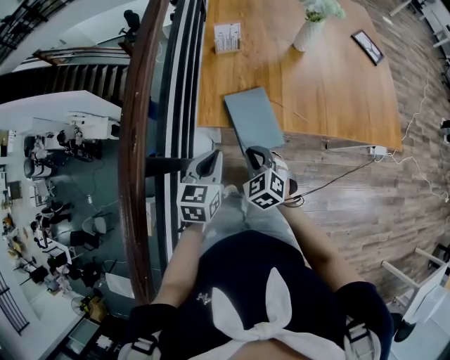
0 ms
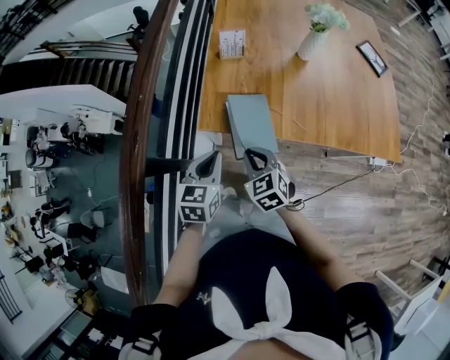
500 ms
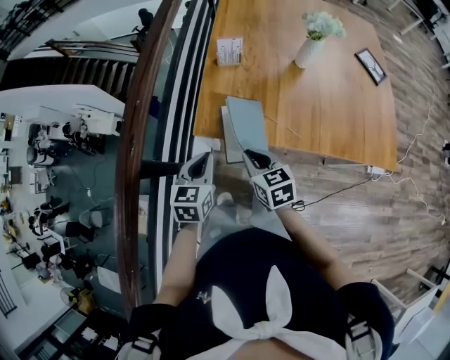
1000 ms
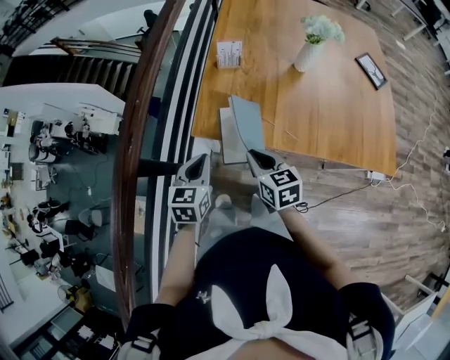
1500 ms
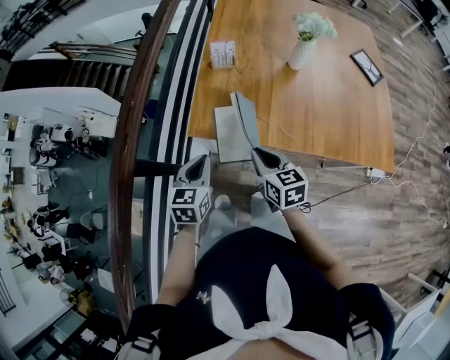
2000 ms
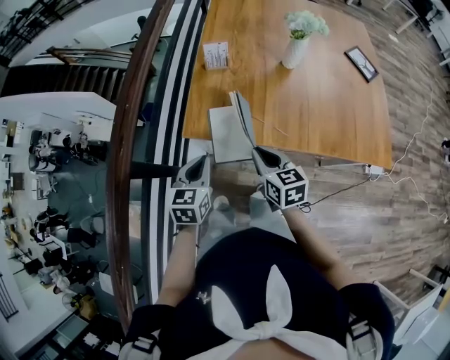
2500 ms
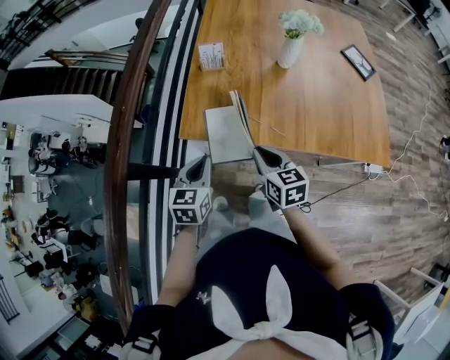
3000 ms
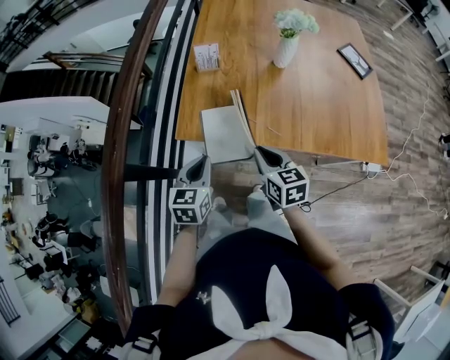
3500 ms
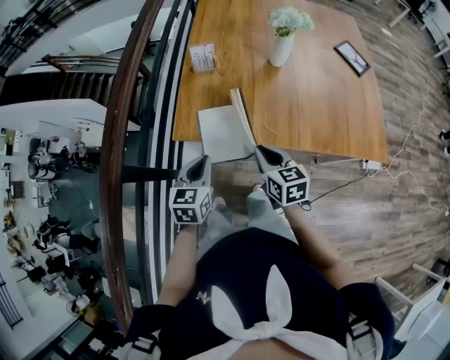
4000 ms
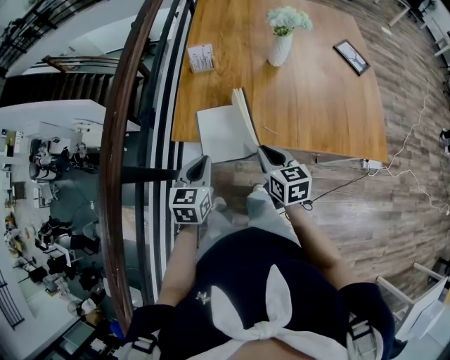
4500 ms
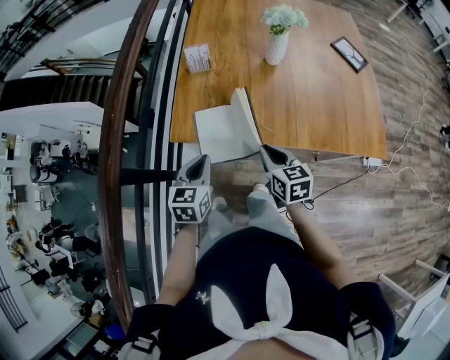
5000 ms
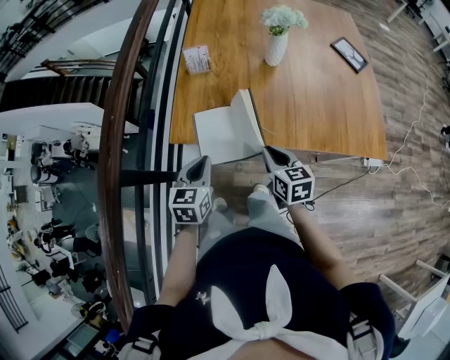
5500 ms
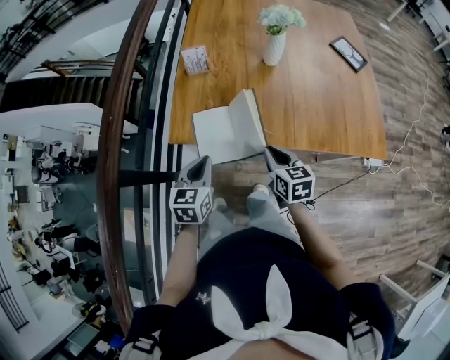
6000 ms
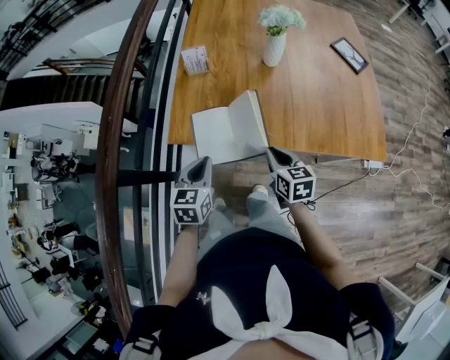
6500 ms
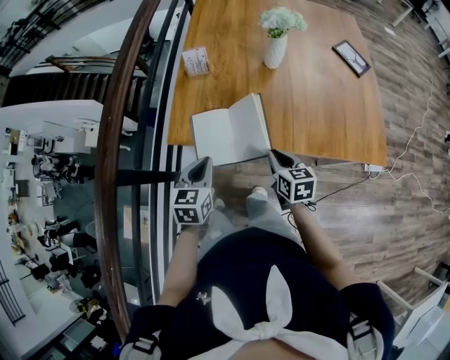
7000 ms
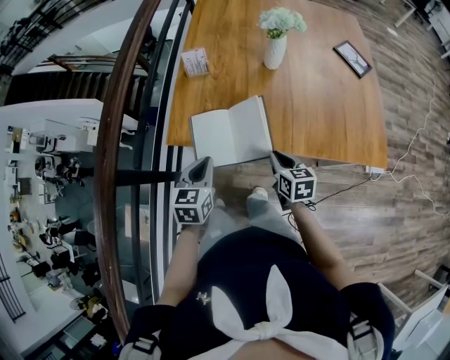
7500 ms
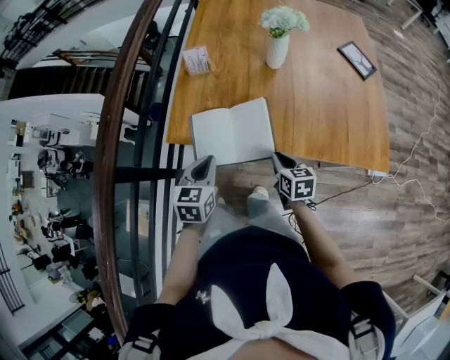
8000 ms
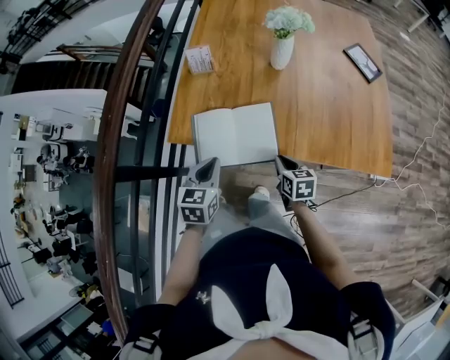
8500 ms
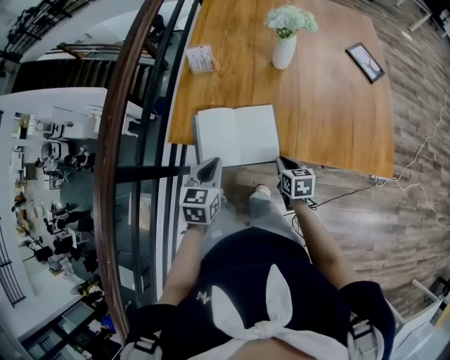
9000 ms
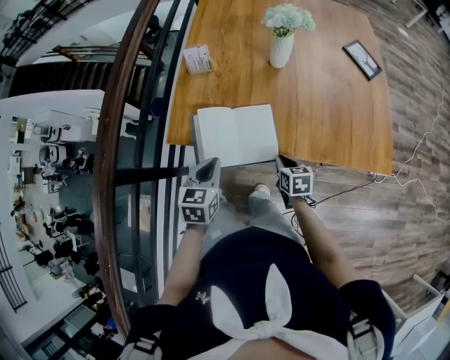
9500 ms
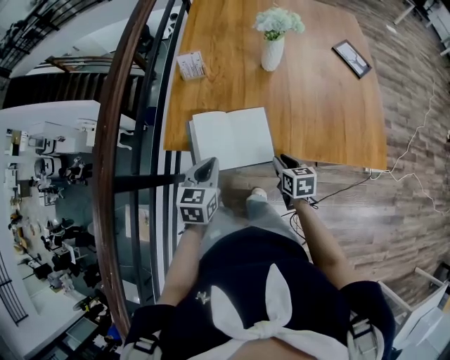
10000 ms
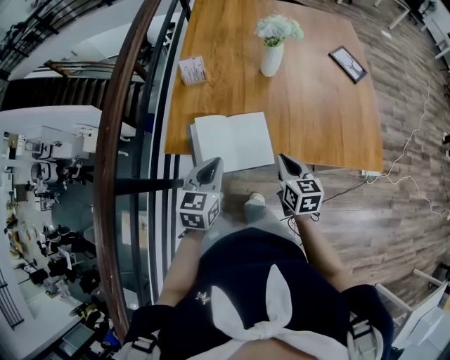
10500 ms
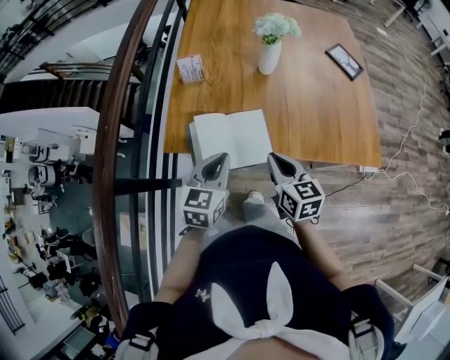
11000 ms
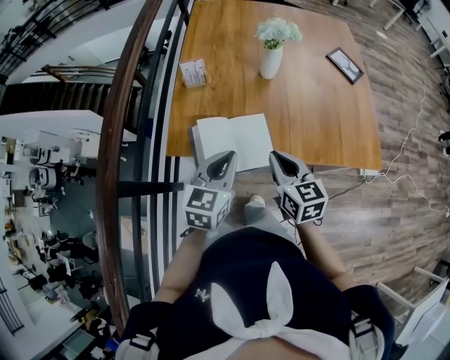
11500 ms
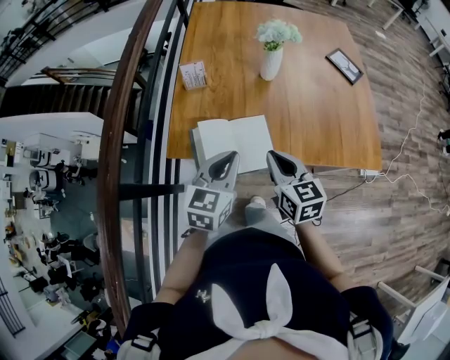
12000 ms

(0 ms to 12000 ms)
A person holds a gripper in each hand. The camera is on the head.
0 ms - 2000 ms: The right gripper goes some 15 cm upward and to the right, and turns by some 40 degrees.
2000 ms - 4000 ms: The grippers both shift to the right by about 5 cm.
4000 ms - 6000 ms: The right gripper travels to the right by about 5 cm.
6000 ms - 8000 ms: The right gripper shifts roughly 10 cm downward and to the right.
10000 ms - 12000 ms: The right gripper shifts approximately 20 cm upward and to the left, swivels about 20 degrees, and closes up. The left gripper goes roughly 10 cm upward.

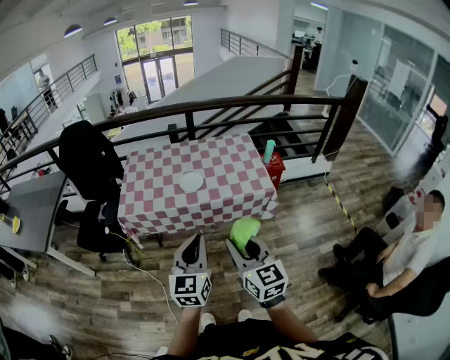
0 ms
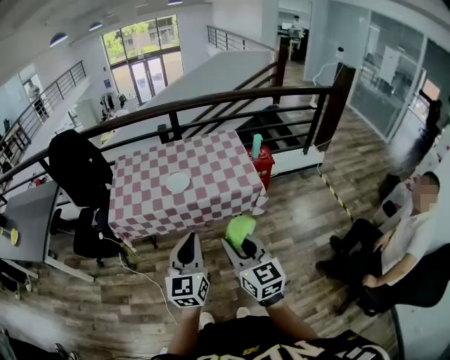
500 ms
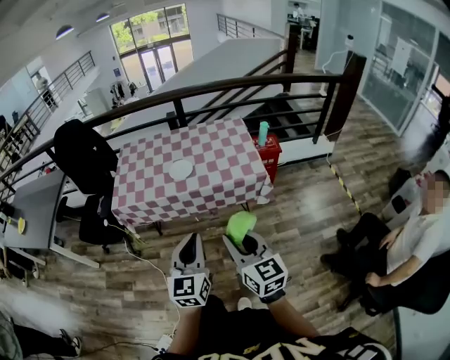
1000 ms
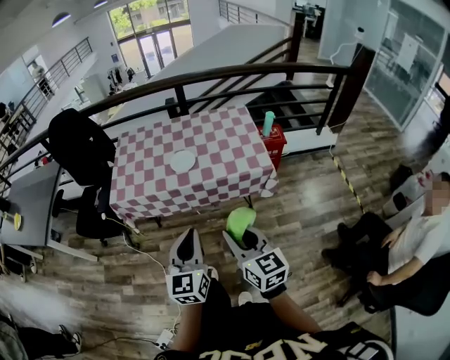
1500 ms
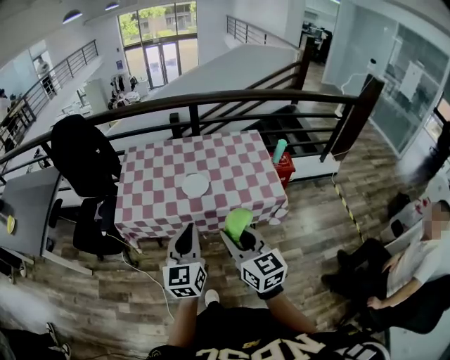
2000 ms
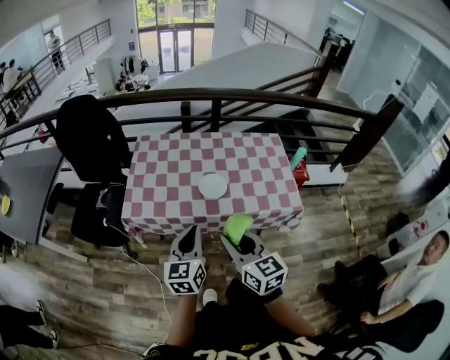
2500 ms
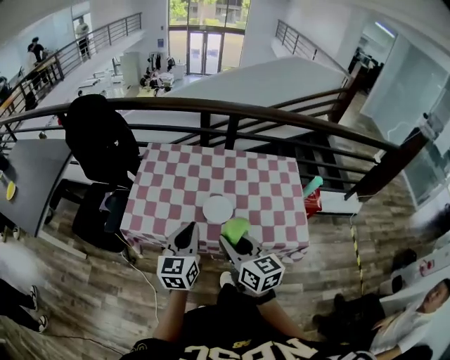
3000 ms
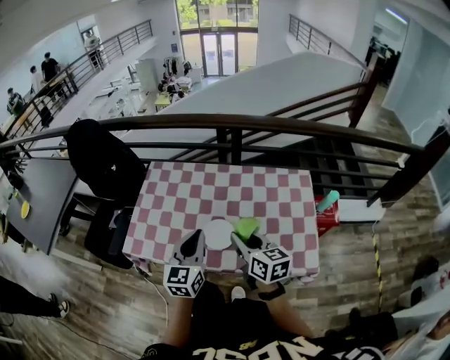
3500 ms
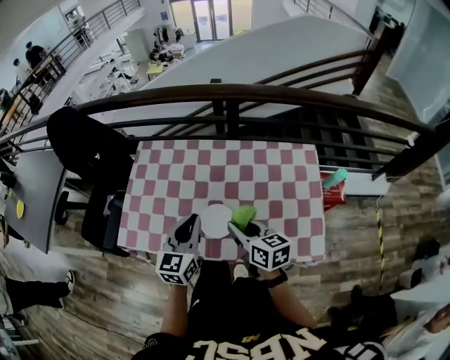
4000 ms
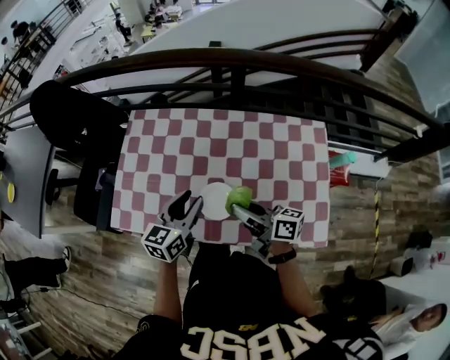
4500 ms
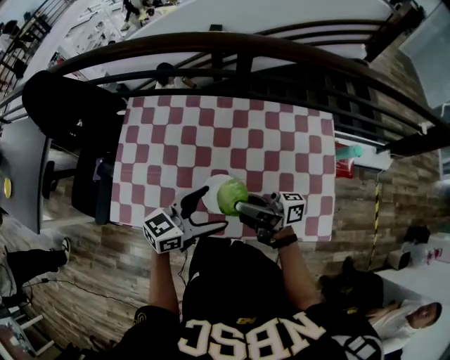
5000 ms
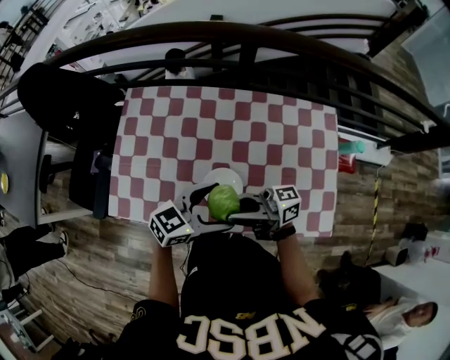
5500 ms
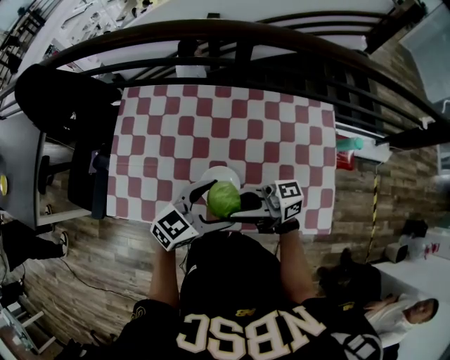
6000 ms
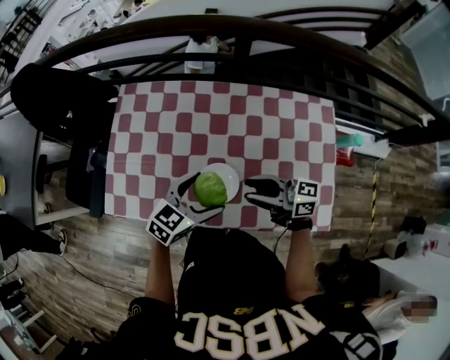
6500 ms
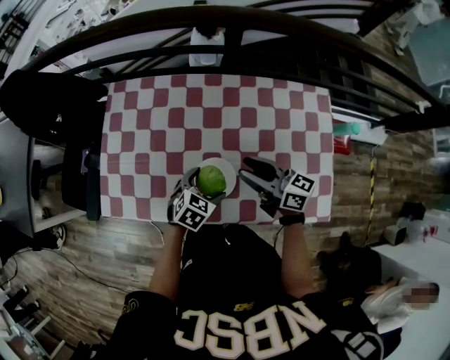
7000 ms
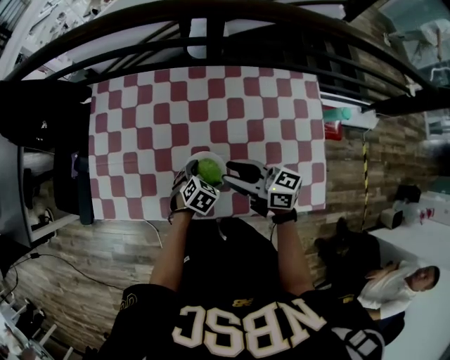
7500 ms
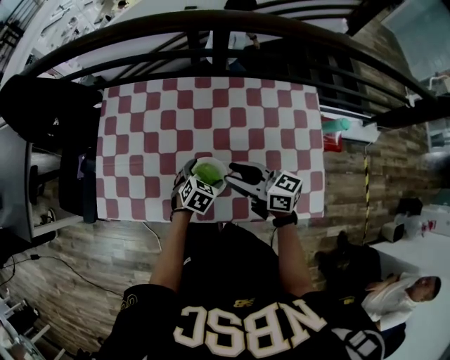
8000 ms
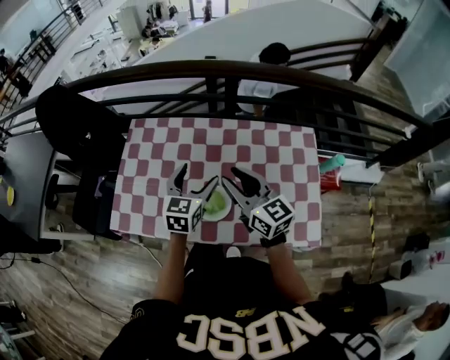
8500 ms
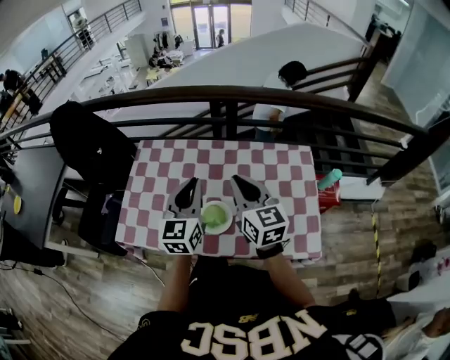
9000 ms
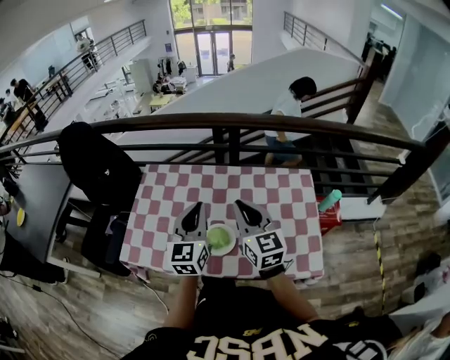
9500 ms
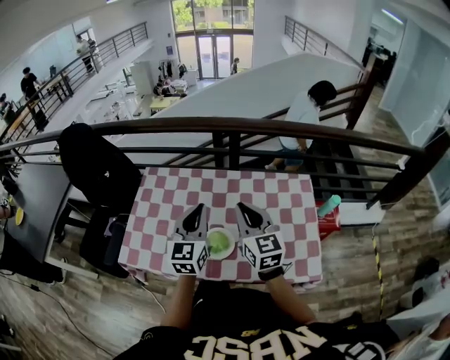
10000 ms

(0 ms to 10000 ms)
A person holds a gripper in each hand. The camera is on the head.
0 ms - 2000 ms: Both grippers move forward, about 15 cm.
2000 ms - 4000 ms: The right gripper travels forward and downward by roughly 40 cm, and changes its angle by approximately 30 degrees. The left gripper goes about 35 cm forward.
4000 ms - 6000 ms: The left gripper goes approximately 5 cm downward, rotates approximately 50 degrees, and opens; the right gripper shifts by some 5 cm, and points its fingers about 40 degrees further upward.
6000 ms - 8000 ms: The right gripper shifts by some 10 cm, and changes its angle by about 40 degrees; the left gripper moves downward, approximately 20 cm, and tips its fingers downward by about 40 degrees.
8000 ms - 10000 ms: The right gripper travels upward by approximately 15 cm, swivels approximately 50 degrees, and closes. Meanwhile the left gripper shifts roughly 35 cm upward, angles its fingers upward, by about 50 degrees, and closes its fingers.

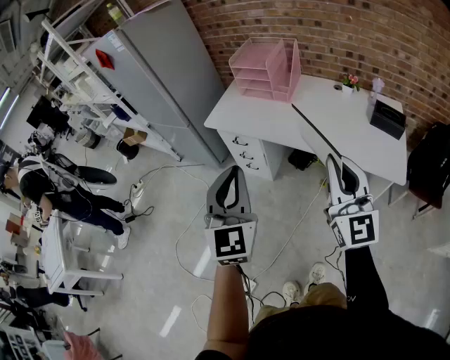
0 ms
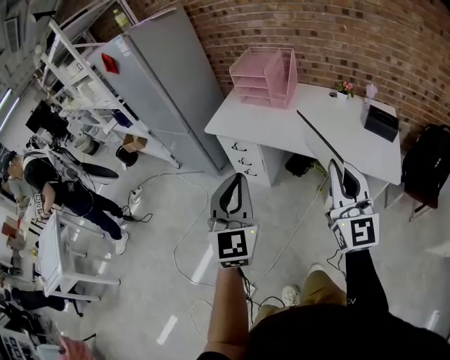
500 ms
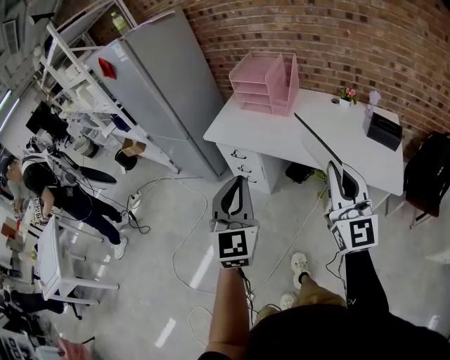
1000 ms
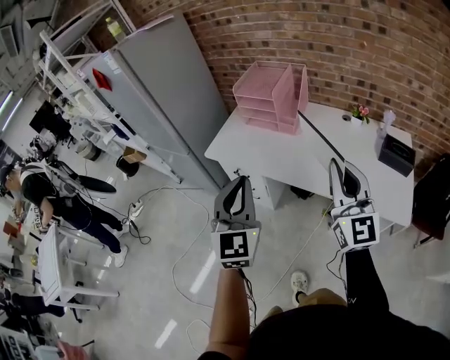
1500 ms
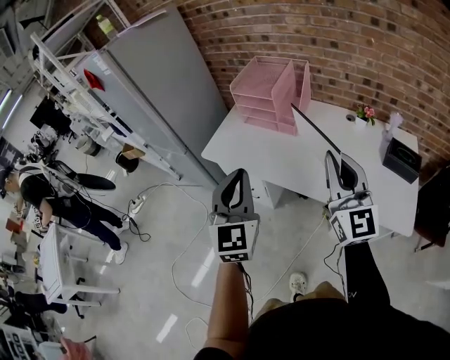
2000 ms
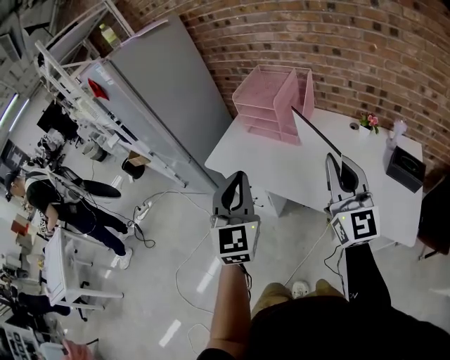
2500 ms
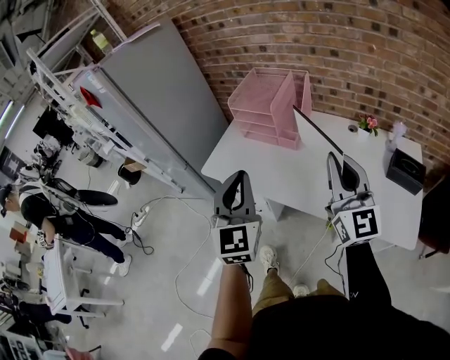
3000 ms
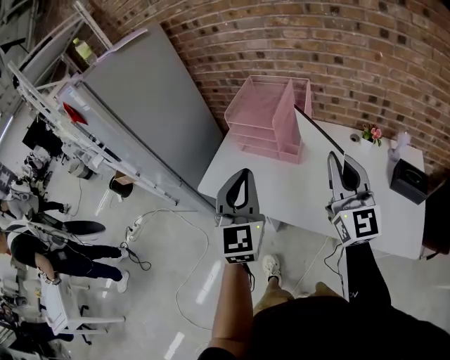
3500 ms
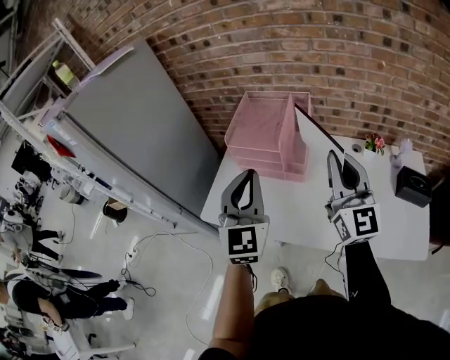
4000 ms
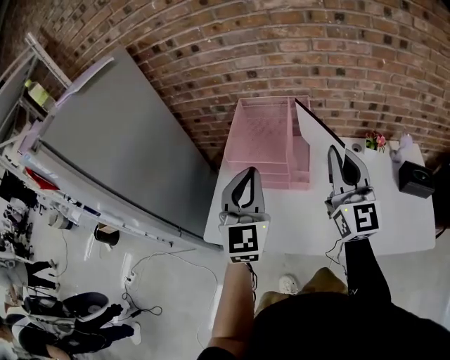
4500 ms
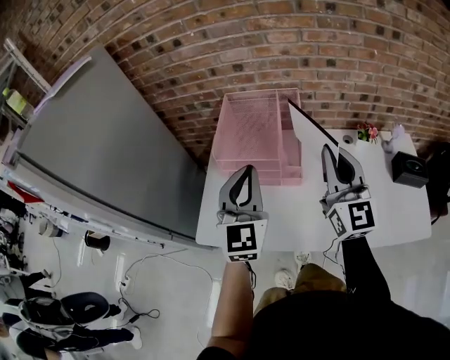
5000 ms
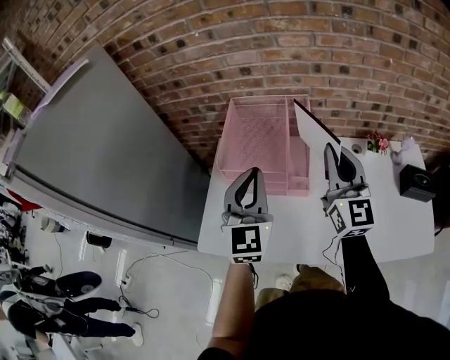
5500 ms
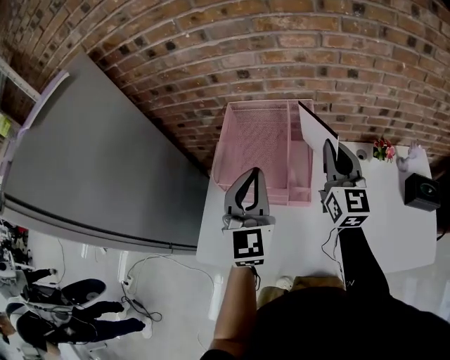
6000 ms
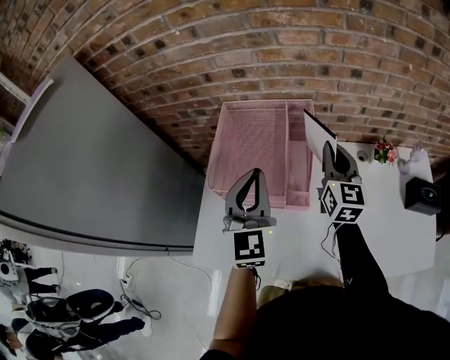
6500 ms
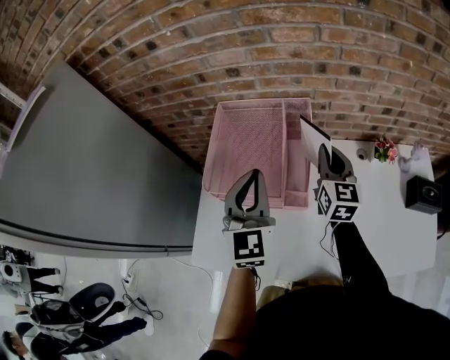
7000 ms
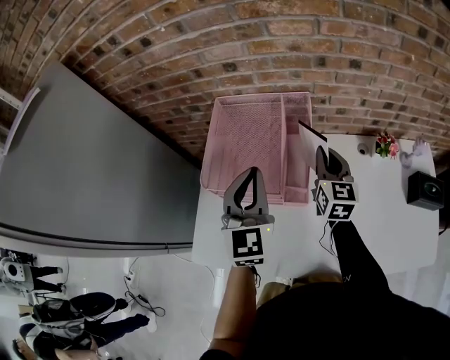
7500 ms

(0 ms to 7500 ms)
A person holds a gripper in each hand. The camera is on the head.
0 ms - 2000 ms: Both grippers travel together forward, about 20 cm.
2000 ms - 4000 ms: Both grippers move forward, roughly 25 cm.
4000 ms - 5500 ms: The two grippers go roughly 15 cm forward.
5500 ms - 7500 ms: The left gripper is displaced forward by about 10 cm; the right gripper travels downward and forward by roughly 20 cm, and turns by some 30 degrees.
